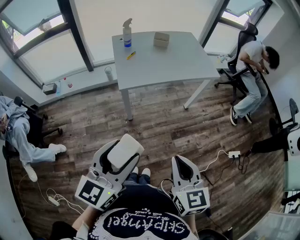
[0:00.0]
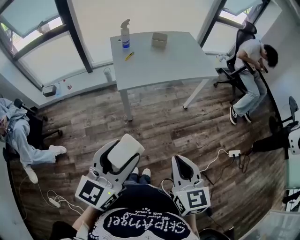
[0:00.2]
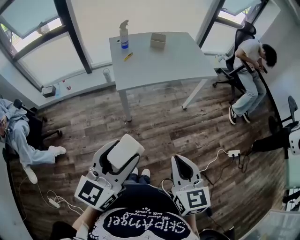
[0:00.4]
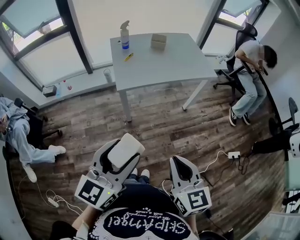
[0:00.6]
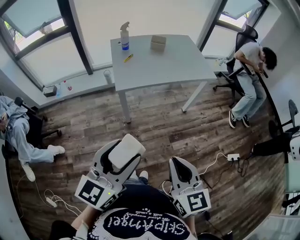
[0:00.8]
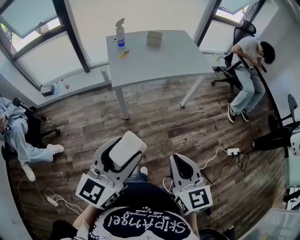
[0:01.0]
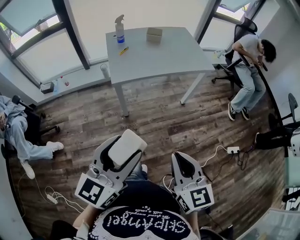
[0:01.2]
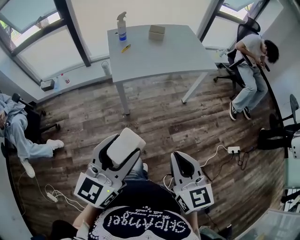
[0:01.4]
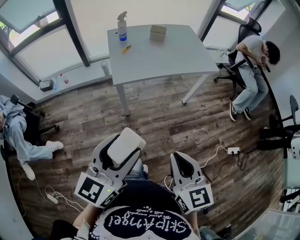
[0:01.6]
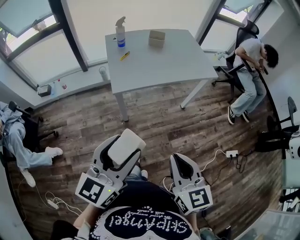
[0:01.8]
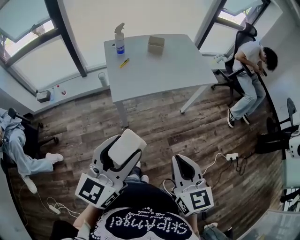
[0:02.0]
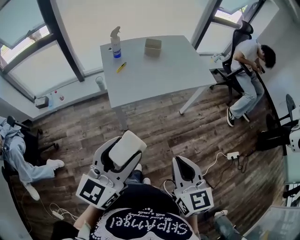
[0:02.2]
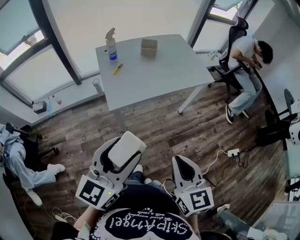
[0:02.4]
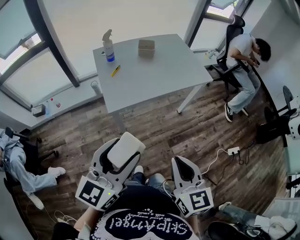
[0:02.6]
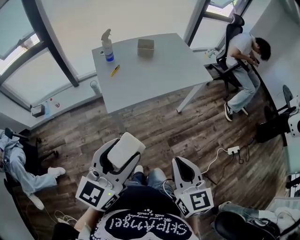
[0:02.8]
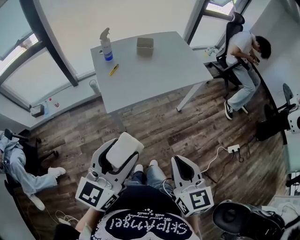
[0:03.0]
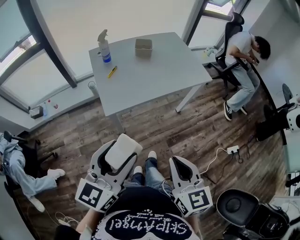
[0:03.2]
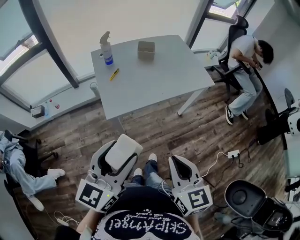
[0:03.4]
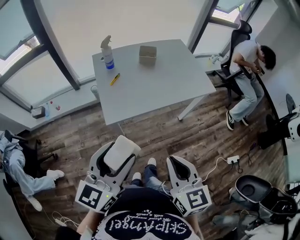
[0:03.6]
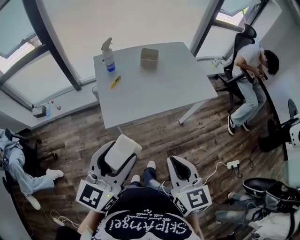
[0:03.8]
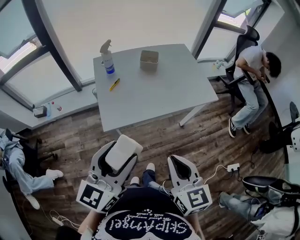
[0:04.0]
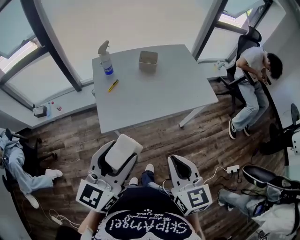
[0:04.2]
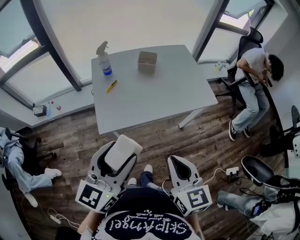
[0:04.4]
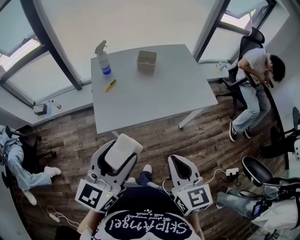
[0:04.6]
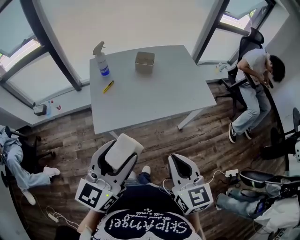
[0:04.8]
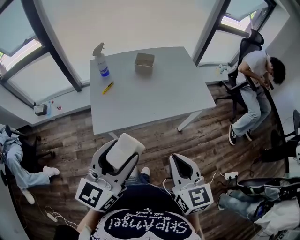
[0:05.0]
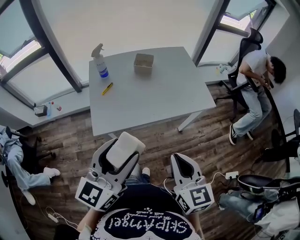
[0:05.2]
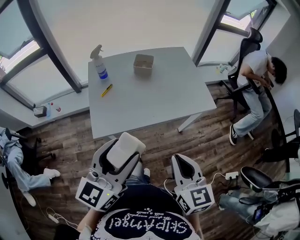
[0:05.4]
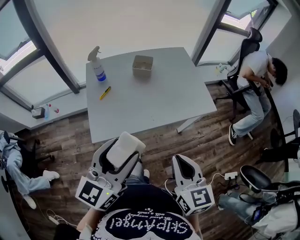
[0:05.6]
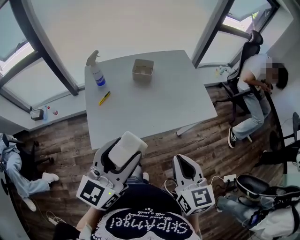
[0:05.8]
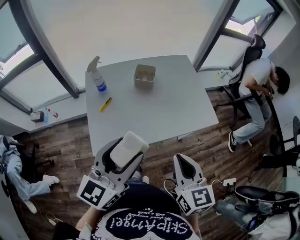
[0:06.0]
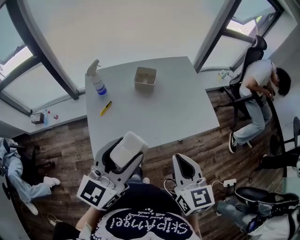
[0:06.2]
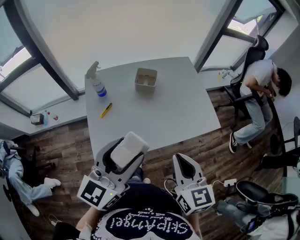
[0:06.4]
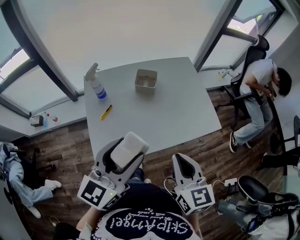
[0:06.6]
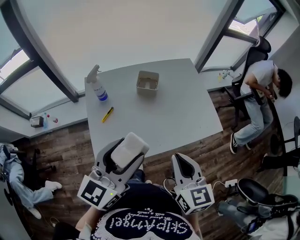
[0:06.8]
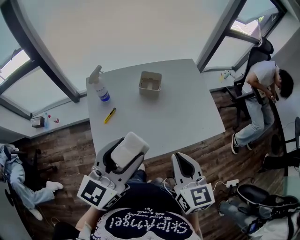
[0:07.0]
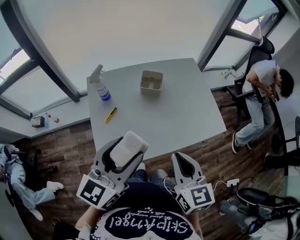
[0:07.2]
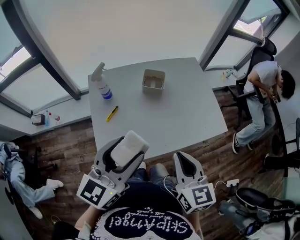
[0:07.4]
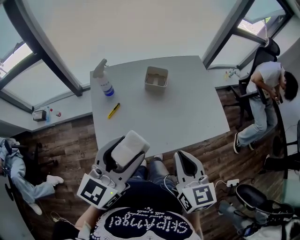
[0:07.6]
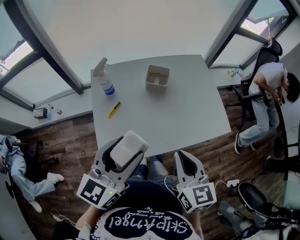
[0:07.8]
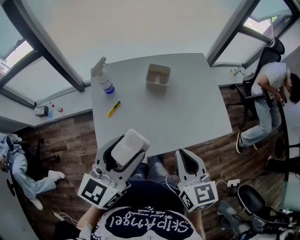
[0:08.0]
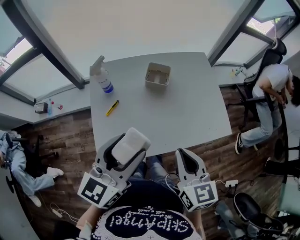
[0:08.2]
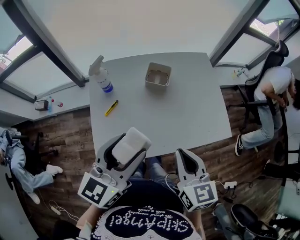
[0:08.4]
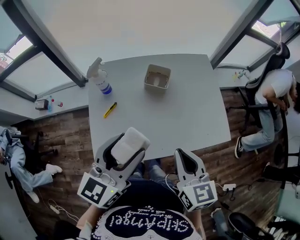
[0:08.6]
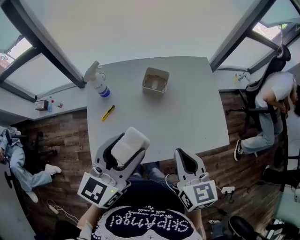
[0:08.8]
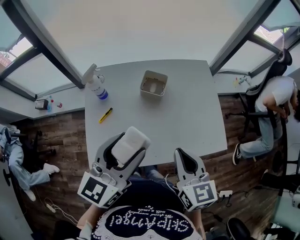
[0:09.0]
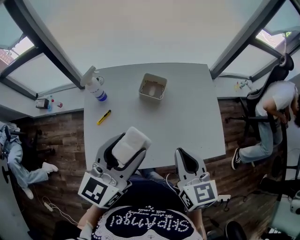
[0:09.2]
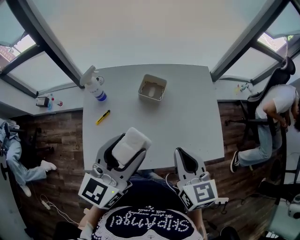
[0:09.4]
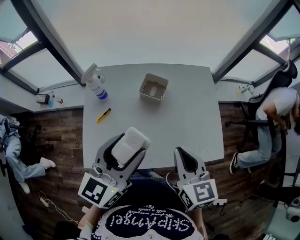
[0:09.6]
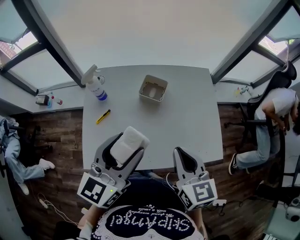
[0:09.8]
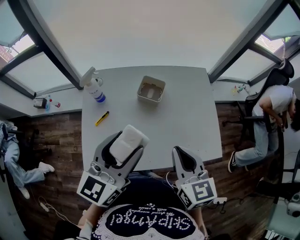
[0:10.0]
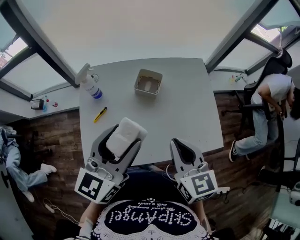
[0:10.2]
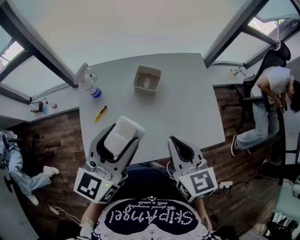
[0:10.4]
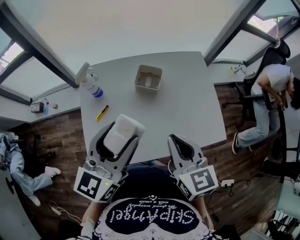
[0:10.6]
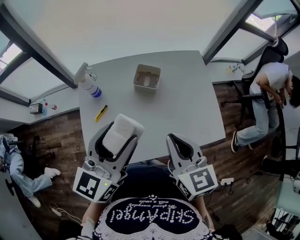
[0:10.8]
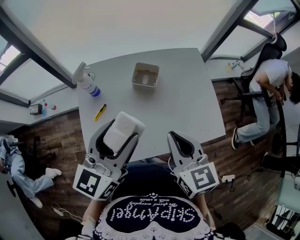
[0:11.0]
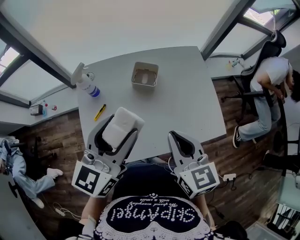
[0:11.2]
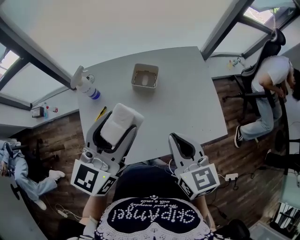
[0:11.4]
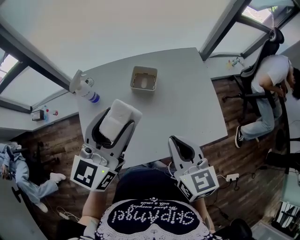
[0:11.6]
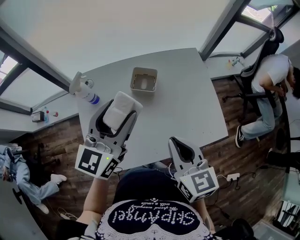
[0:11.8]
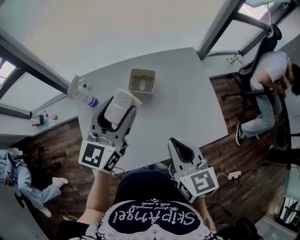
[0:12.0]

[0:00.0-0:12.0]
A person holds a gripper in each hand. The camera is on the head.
0:00.0 to 0:01.6: The grippers make only small movements.
0:01.6 to 0:03.0: Both grippers travel together forward, about 10 cm.
0:03.0 to 0:04.4: The two grippers go roughly 15 cm forward.
0:04.4 to 0:06.0: The grippers both shift forward by approximately 15 cm.
0:06.0 to 0:07.6: Both grippers move forward and to the left, about 10 cm.
0:07.6 to 0:09.0: The left gripper is displaced forward and to the right by approximately 10 cm. Meanwhile the right gripper is displaced forward by approximately 10 cm.
0:09.0 to 0:10.4: There are only small adjustments of the grippers.
0:10.4 to 0:12.0: The left gripper goes about 10 cm forward.

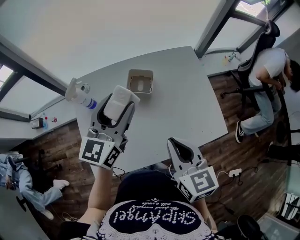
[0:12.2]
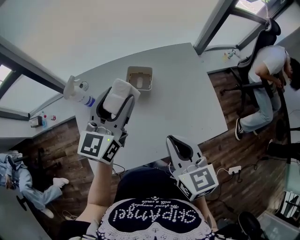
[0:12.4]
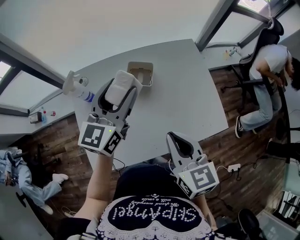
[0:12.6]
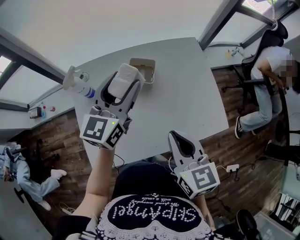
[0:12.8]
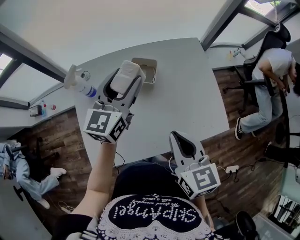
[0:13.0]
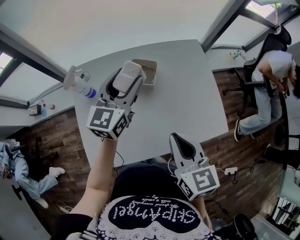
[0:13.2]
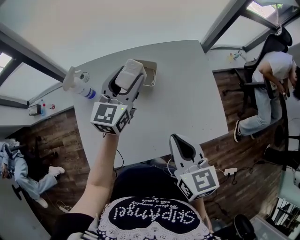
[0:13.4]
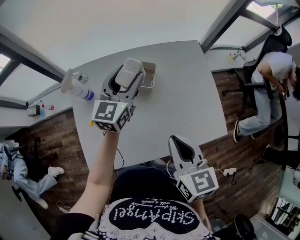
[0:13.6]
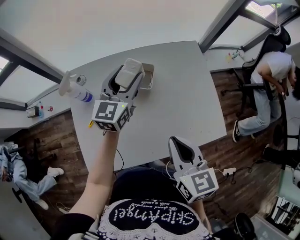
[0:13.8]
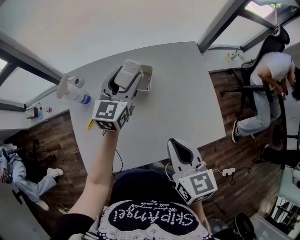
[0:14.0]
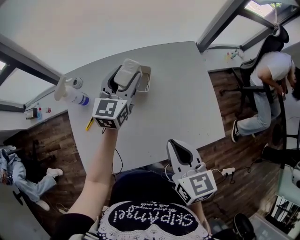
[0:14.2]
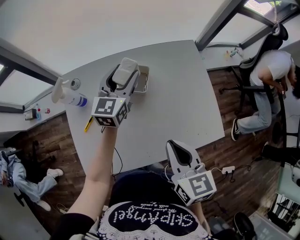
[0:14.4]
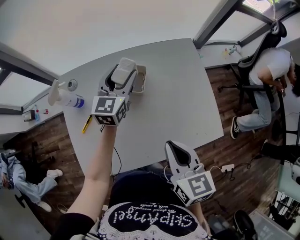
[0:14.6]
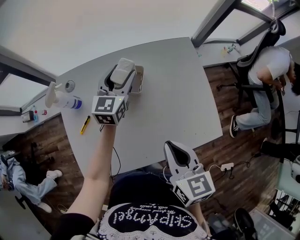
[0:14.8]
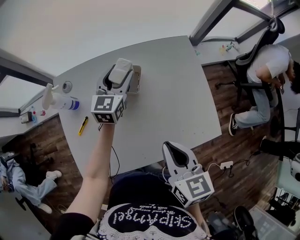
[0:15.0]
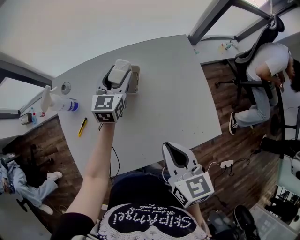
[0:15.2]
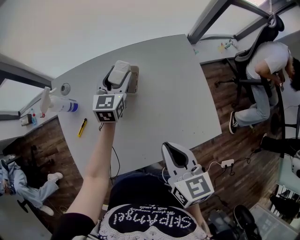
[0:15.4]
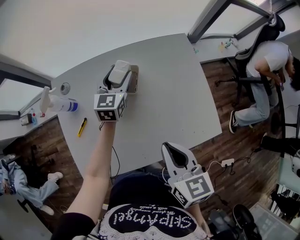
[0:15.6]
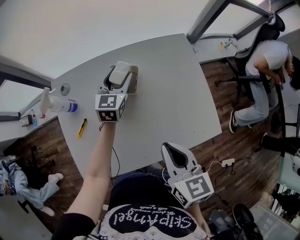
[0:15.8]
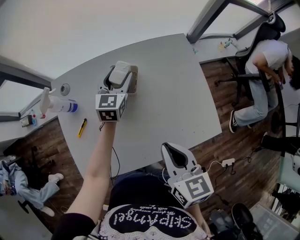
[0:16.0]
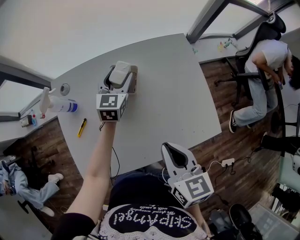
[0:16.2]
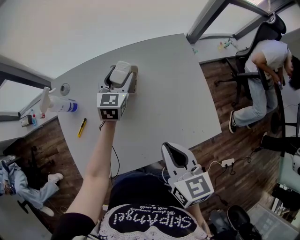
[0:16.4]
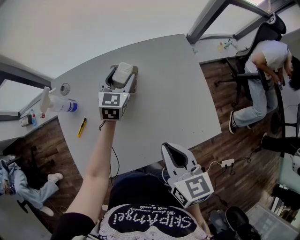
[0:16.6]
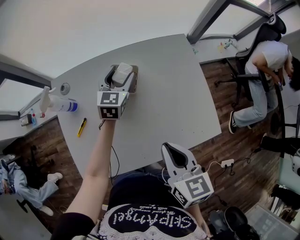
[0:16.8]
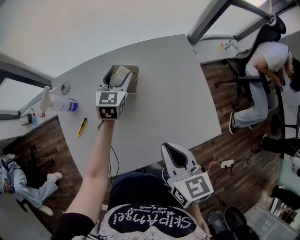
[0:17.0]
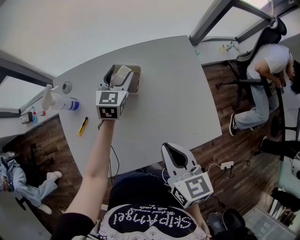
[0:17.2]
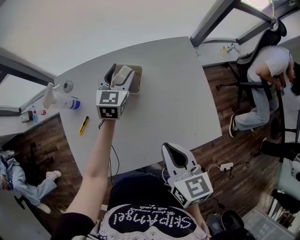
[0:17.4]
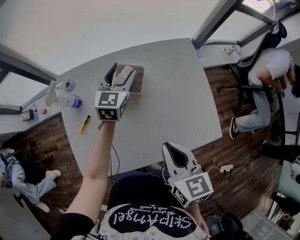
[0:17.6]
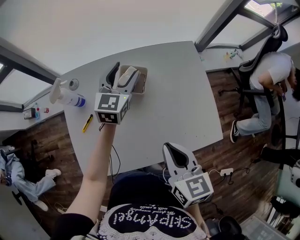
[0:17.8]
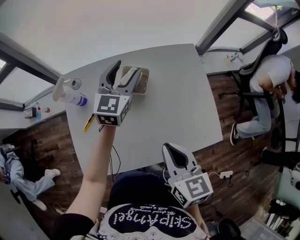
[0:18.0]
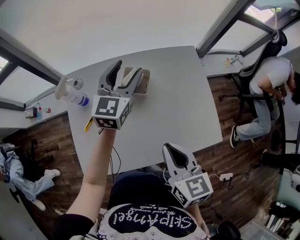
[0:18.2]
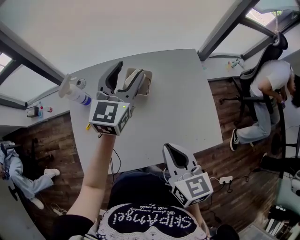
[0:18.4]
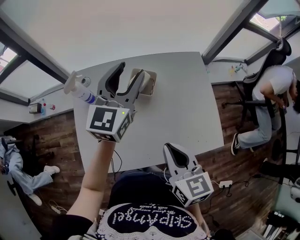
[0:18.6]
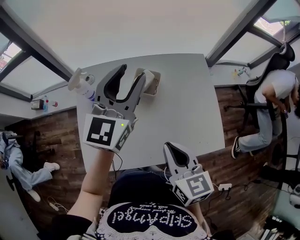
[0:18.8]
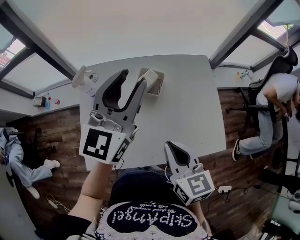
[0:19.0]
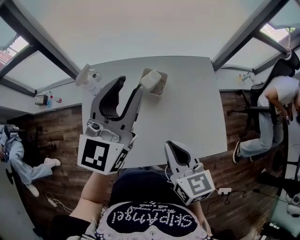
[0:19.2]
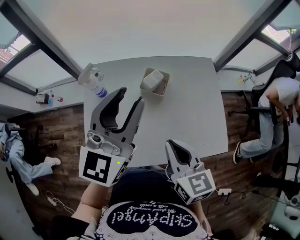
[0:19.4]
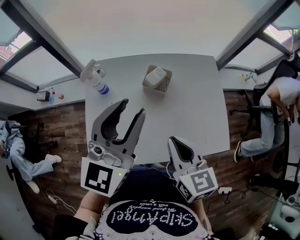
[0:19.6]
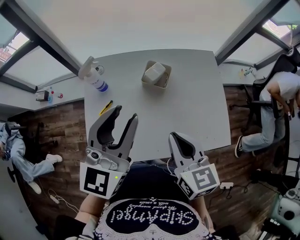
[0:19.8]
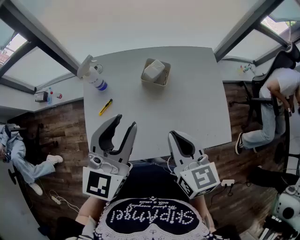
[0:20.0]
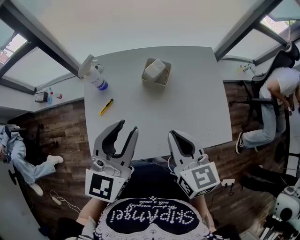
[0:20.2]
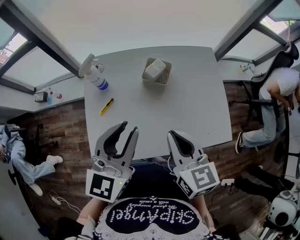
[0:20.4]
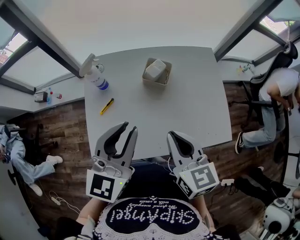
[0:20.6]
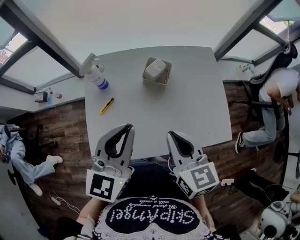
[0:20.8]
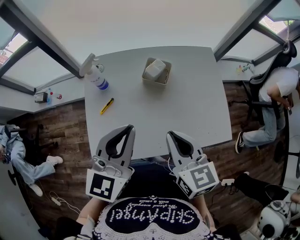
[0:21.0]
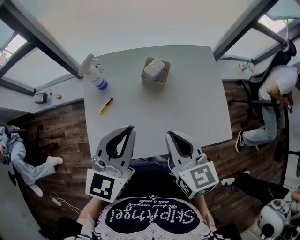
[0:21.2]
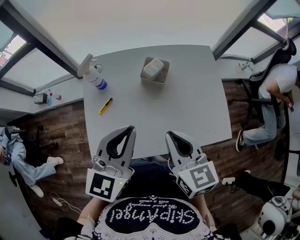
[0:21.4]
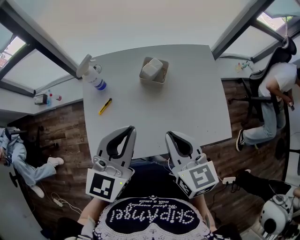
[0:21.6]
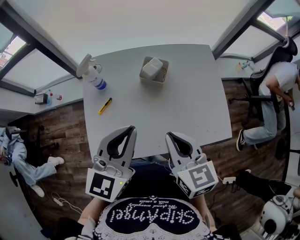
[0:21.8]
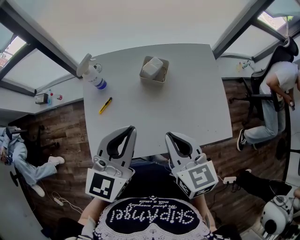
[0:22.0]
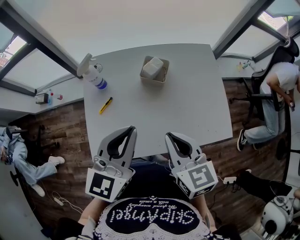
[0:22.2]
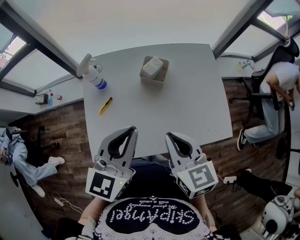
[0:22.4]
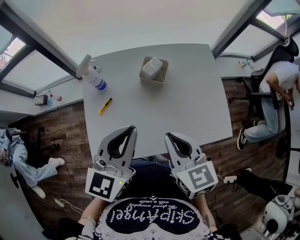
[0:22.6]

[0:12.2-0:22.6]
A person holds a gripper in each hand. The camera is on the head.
0:12.2 to 0:13.6: The left gripper heads forward and downward, covering about 10 cm.
0:13.6 to 0:15.2: The left gripper moves downward and forward, approximately 10 cm.
0:15.2 to 0:16.6: There are only small adjustments of the grippers.
0:16.6 to 0:18.2: The left gripper travels upward by approximately 15 cm.
0:18.2 to 0:19.6: The left gripper travels backward and upward by about 20 cm, and closes.
0:19.6 to 0:21.2: The left gripper goes some 10 cm downward and backward, and closes its fingers.
0:21.2 to 0:22.6: The two grippers keep their place.

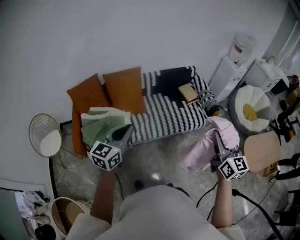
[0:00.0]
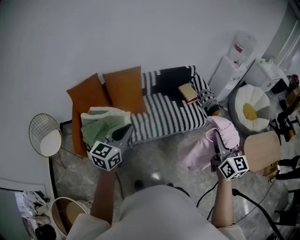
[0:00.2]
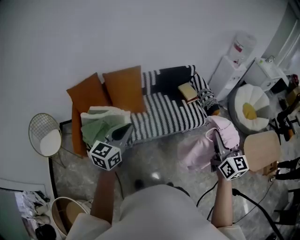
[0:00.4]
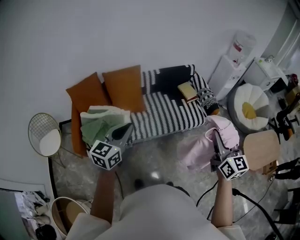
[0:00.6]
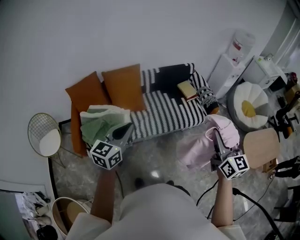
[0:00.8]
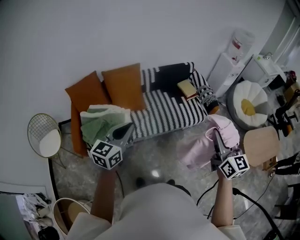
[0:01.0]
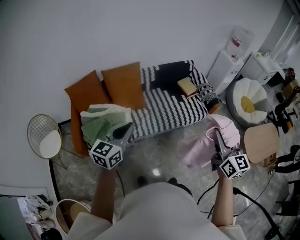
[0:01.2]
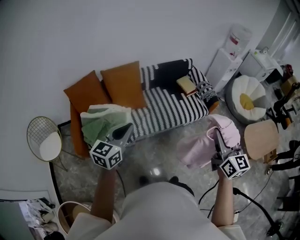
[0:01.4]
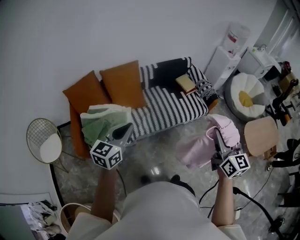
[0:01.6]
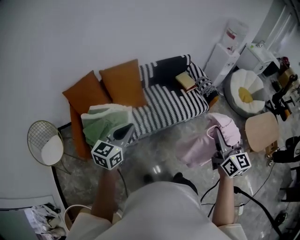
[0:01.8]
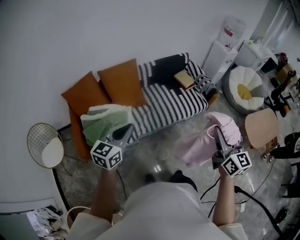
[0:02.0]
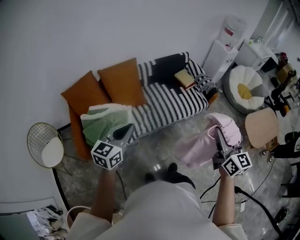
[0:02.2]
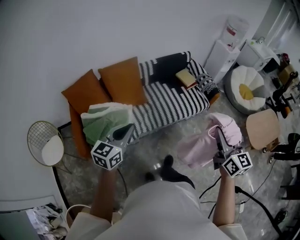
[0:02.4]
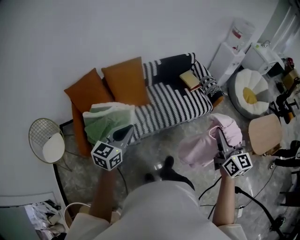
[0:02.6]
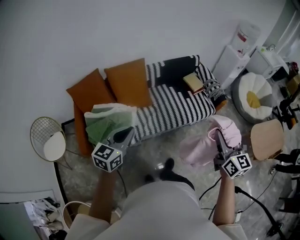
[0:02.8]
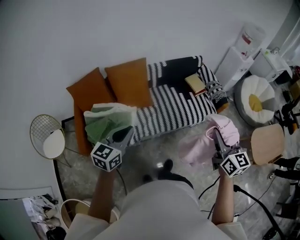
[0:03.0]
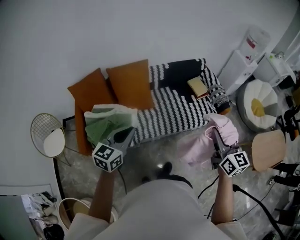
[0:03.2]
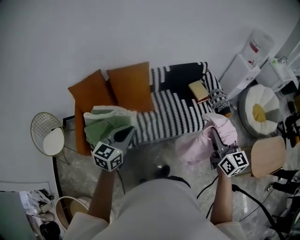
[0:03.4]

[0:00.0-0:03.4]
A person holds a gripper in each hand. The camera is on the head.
0:00.0 to 0:01.6: The right gripper is displaced to the left and backward by roughly 10 cm. Meanwhile the left gripper heads to the left, covering approximately 10 cm.
0:01.6 to 0:03.4: The left gripper travels forward by about 10 cm, while the right gripper is displaced forward by some 20 cm.
